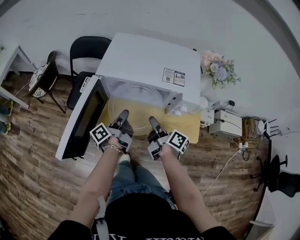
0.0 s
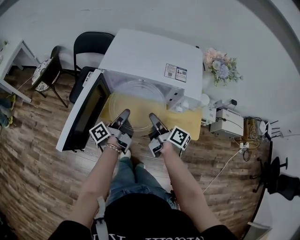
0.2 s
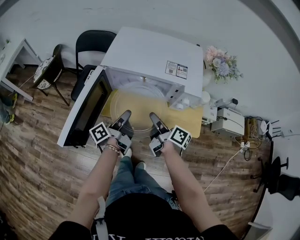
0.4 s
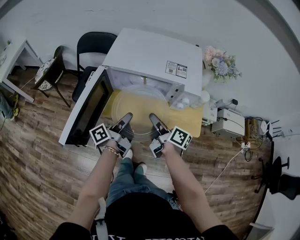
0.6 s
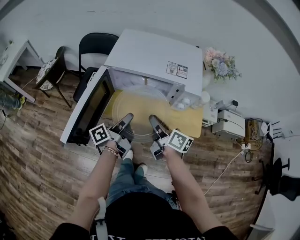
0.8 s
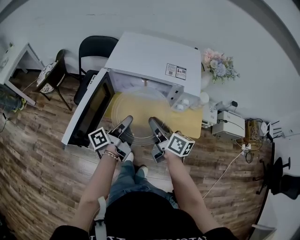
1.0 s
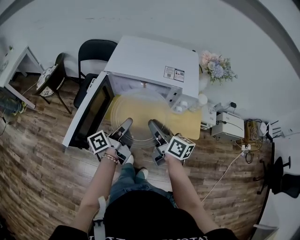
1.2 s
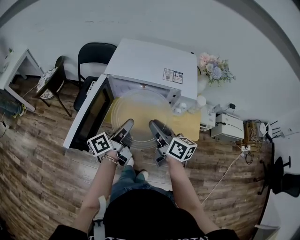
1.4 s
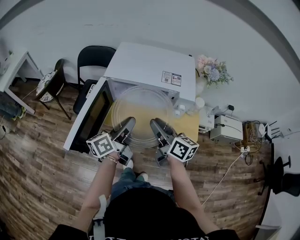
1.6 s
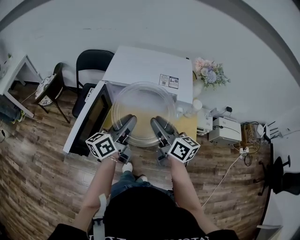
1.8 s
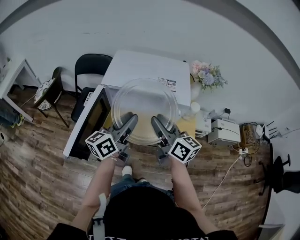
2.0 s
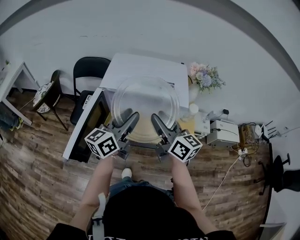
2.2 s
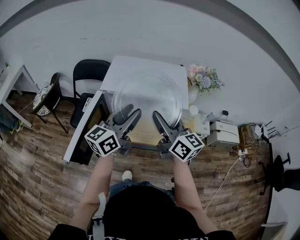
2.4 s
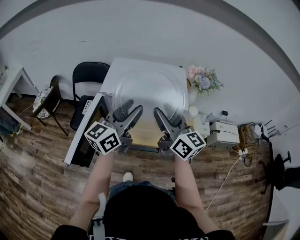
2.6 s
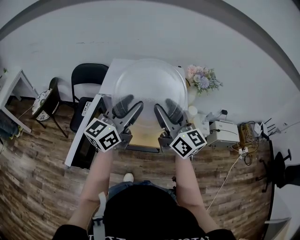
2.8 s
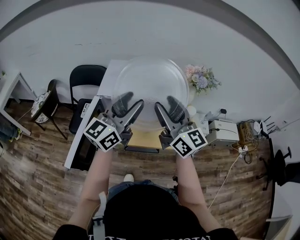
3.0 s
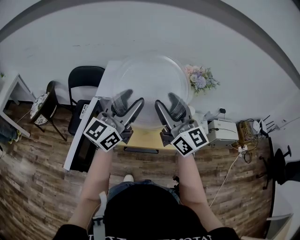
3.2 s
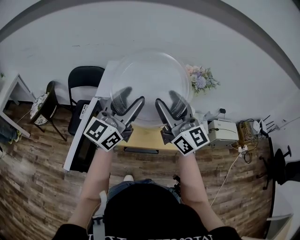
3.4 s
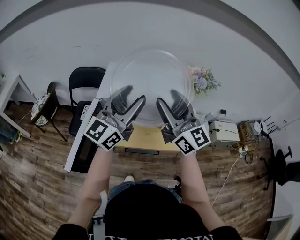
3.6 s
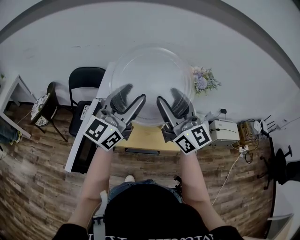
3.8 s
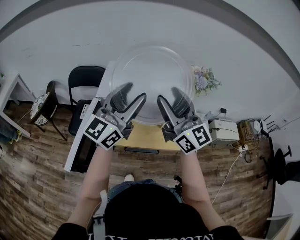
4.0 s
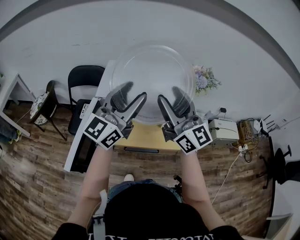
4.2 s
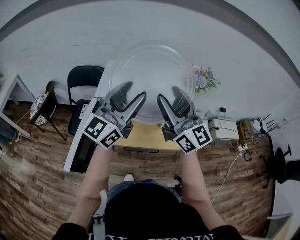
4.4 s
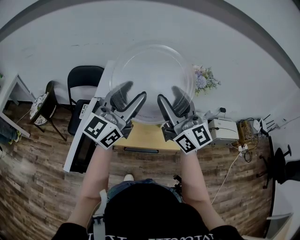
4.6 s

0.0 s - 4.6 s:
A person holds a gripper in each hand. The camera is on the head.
0.0 s - 1.6 s: Both grippers travel together upward and backward, about 15 cm. The right gripper swivels some 30 degrees; the left gripper turns by approximately 40 degrees.
1.6 s - 3.0 s: The two grippers go approximately 15 cm upward. The left gripper rotates around the line of its fingers by approximately 40 degrees, clockwise from behind, and opens, while the right gripper changes its angle by some 40 degrees.
3.0 s - 4.6 s: The grippers move only a little.

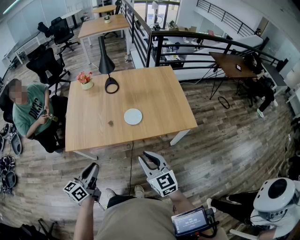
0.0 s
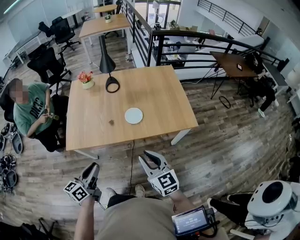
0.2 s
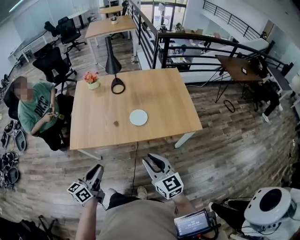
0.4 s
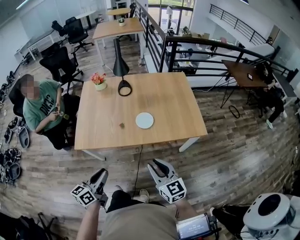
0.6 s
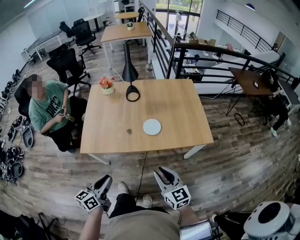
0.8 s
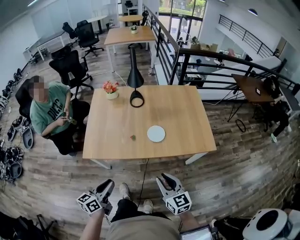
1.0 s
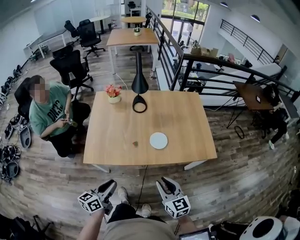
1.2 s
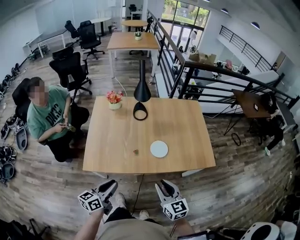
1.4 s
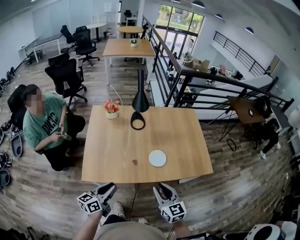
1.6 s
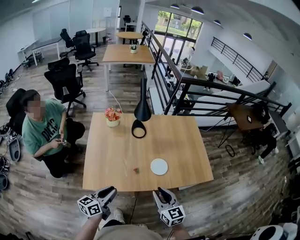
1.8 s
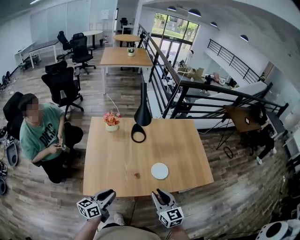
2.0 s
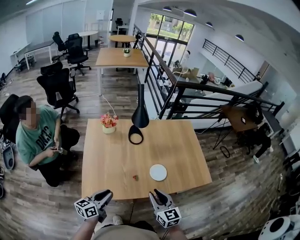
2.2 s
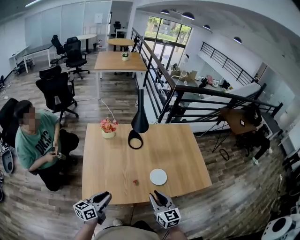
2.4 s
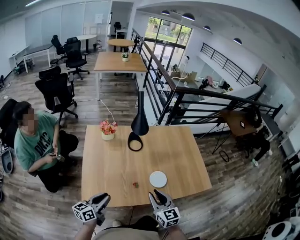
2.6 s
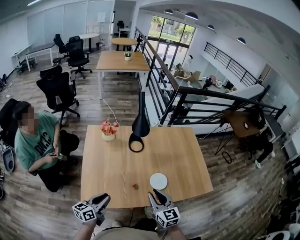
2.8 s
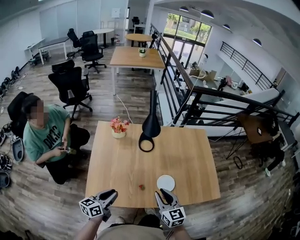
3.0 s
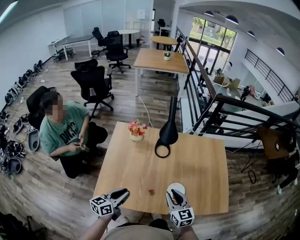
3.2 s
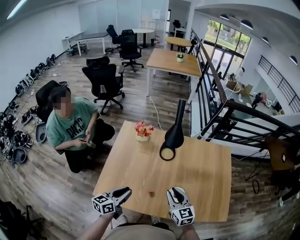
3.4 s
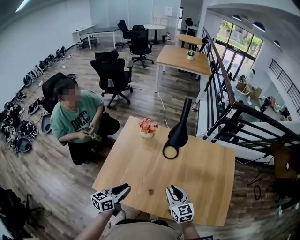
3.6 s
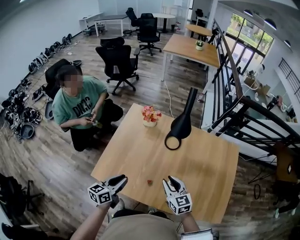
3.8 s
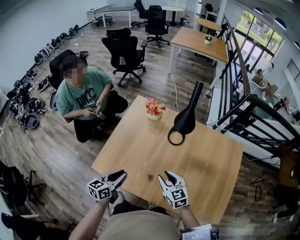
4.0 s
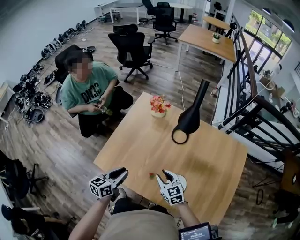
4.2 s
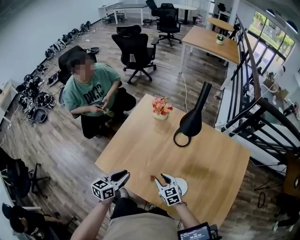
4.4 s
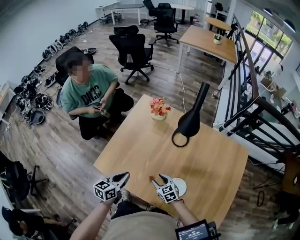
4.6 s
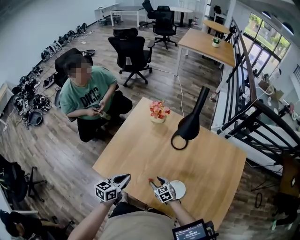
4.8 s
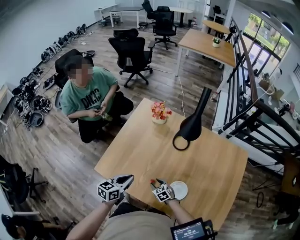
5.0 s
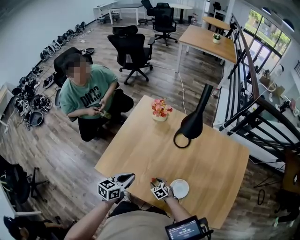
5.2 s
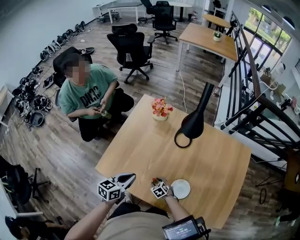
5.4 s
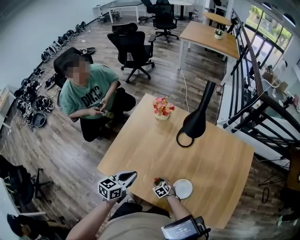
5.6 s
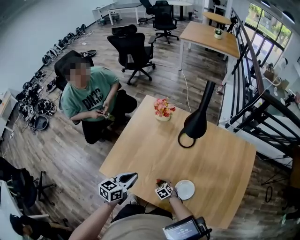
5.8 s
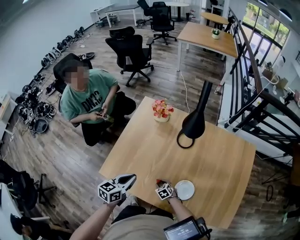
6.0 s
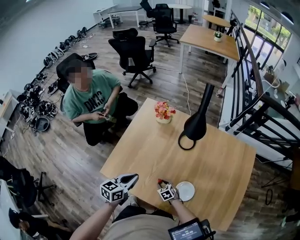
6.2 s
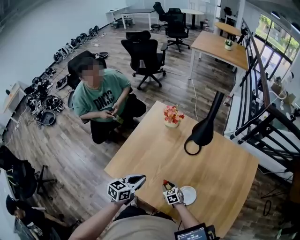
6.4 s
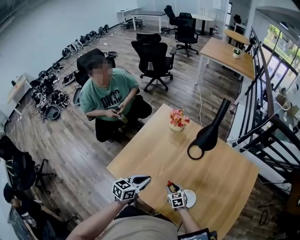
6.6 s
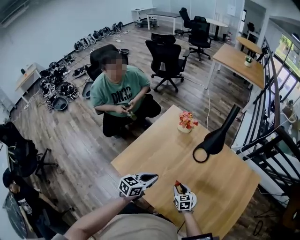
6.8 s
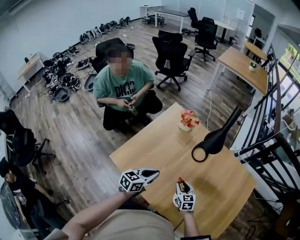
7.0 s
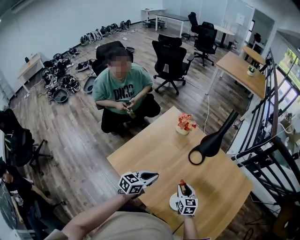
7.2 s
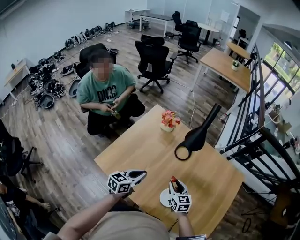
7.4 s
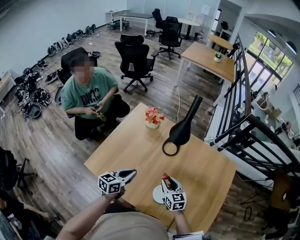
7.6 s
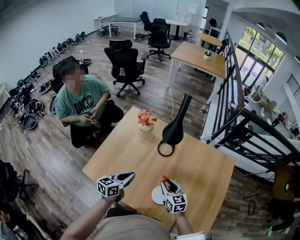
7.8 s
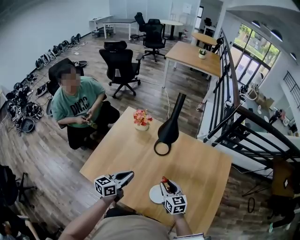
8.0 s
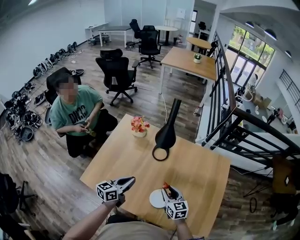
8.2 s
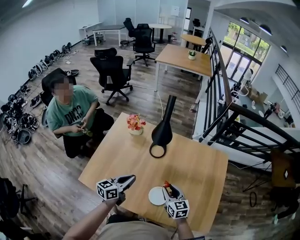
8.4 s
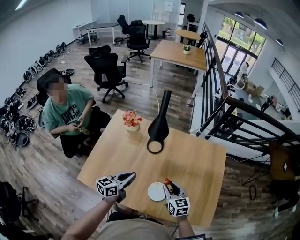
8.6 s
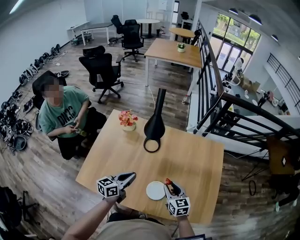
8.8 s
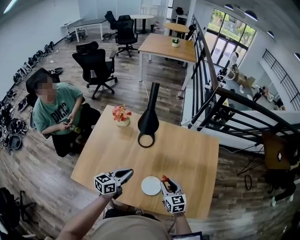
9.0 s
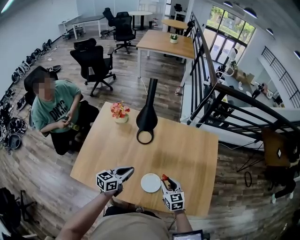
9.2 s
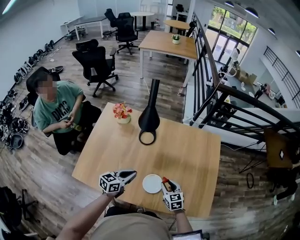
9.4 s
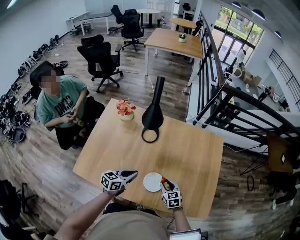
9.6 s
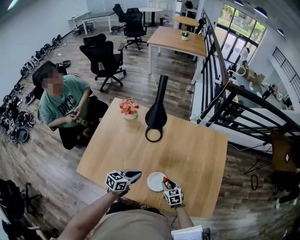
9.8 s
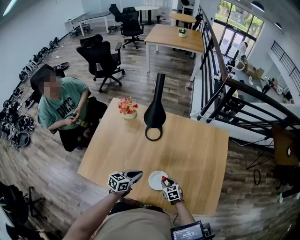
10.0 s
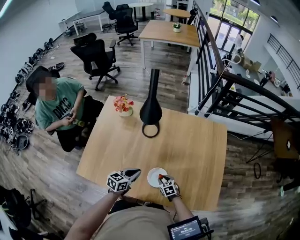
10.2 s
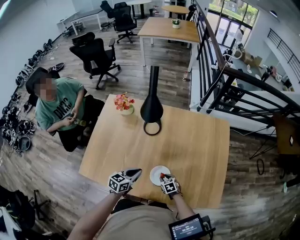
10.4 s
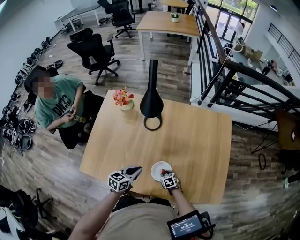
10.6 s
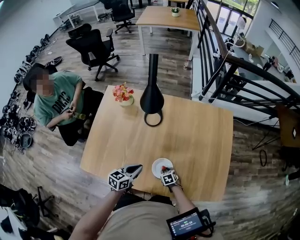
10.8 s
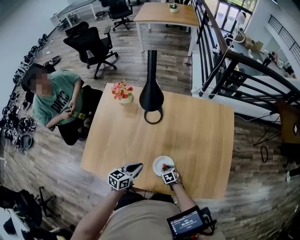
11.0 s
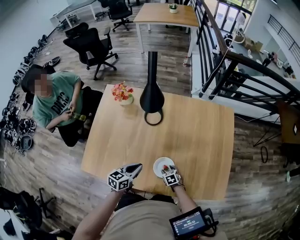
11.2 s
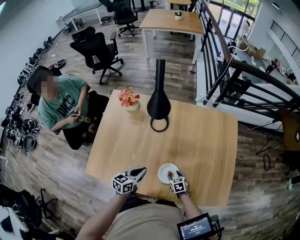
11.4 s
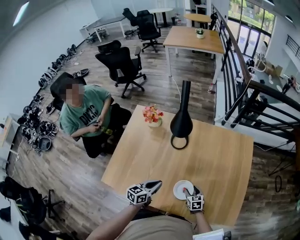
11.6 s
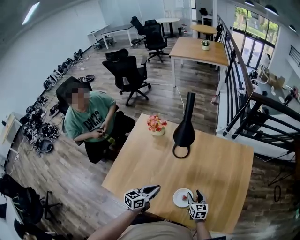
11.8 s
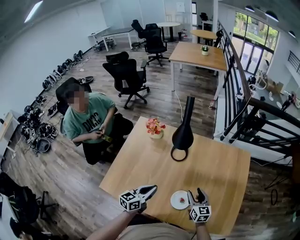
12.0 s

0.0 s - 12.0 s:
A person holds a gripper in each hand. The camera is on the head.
0.0 s - 1.6 s: Both grippers move forward and to the left, approximately 15 cm.
1.6 s - 3.0 s: Both grippers travel together forward and to the left, about 15 cm.
3.0 s - 4.4 s: The left gripper ends up about 5 cm from where it was, and changes its angle by roughly 30 degrees, while the right gripper shifts about 20 cm downward, and turns by roughly 50 degrees.
4.4 s - 6.0 s: The right gripper goes roughly 20 cm downward, and changes its angle by approximately 20 degrees.
6.0 s - 7.6 s: The left gripper travels to the right by some 10 cm. The right gripper travels upward and to the right by some 30 cm, and angles its fingers upward, by about 30 degrees.
7.6 s - 9.0 s: Both grippers travel together to the right, some 10 cm.
9.0 s - 10.4 s: The left gripper is displaced downward by some 10 cm. The right gripper travels downward by roughly 25 cm, and swivels roughly 30 degrees.
10.4 s - 12.0 s: The left gripper shifts about 10 cm upward and to the left. The right gripper moves upward, roughly 25 cm, tips its fingers upward by approximately 40 degrees, and opens its fingers.

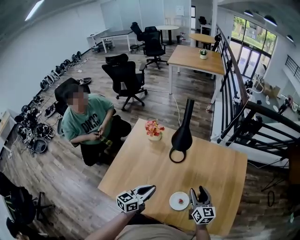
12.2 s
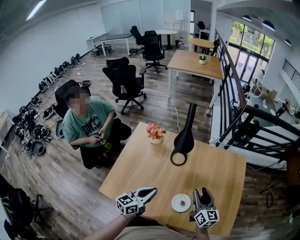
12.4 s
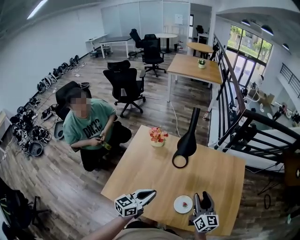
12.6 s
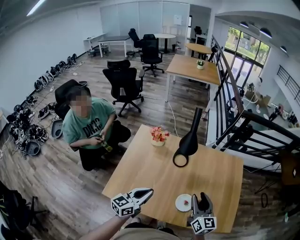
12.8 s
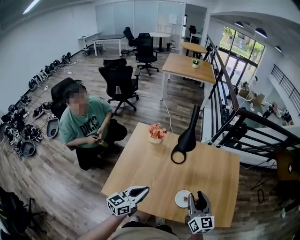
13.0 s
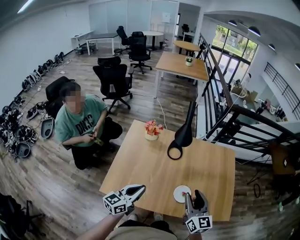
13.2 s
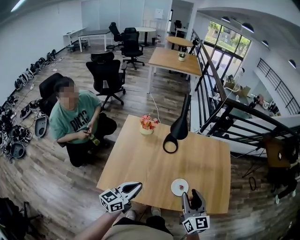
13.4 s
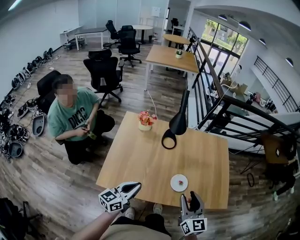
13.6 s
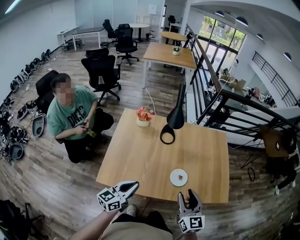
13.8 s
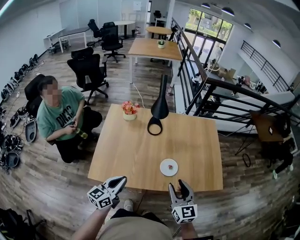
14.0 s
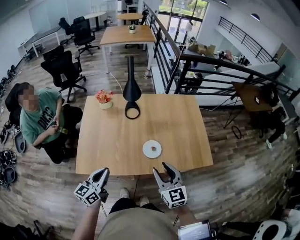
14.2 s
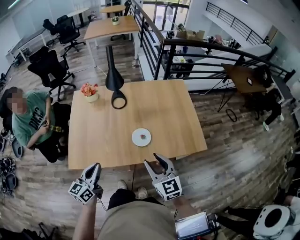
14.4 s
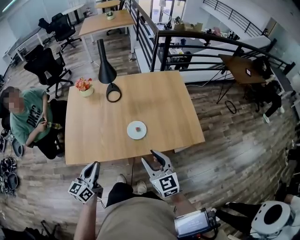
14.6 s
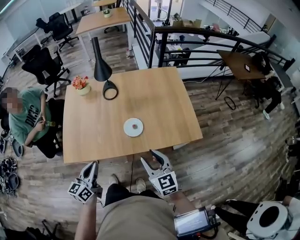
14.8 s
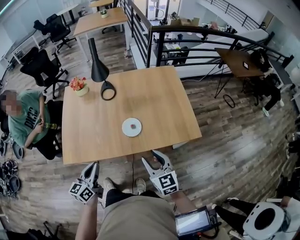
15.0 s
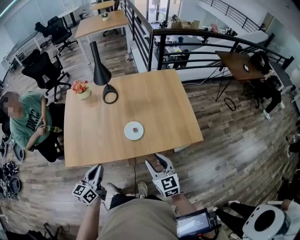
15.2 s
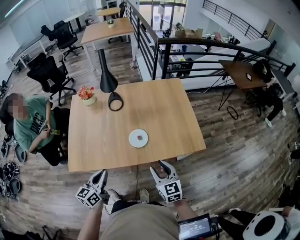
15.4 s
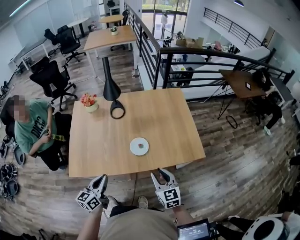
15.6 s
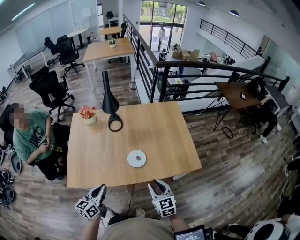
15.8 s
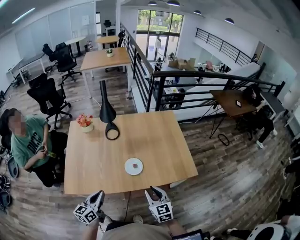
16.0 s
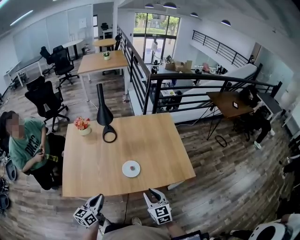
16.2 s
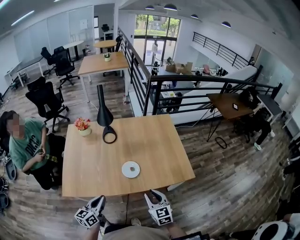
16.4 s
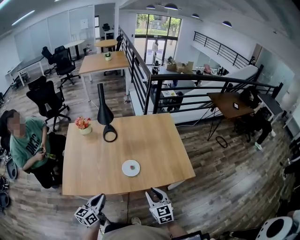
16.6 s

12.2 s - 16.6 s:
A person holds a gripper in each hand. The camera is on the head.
12.2 s - 13.6 s: The right gripper shifts some 30 cm backward, upward and to the left. The left gripper shifts approximately 20 cm backward and to the left.
13.6 s - 15.2 s: The right gripper goes approximately 25 cm to the right, downward and backward. The left gripper travels to the right and backward by approximately 15 cm.
15.2 s - 16.6 s: The grippers make only small movements.

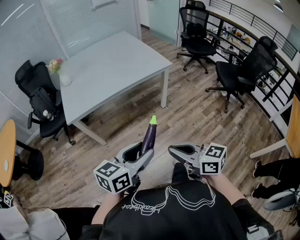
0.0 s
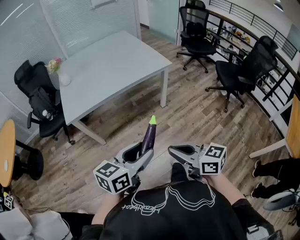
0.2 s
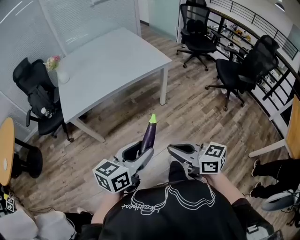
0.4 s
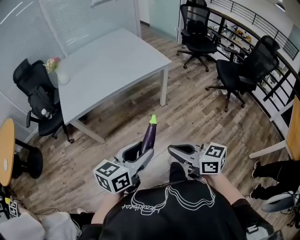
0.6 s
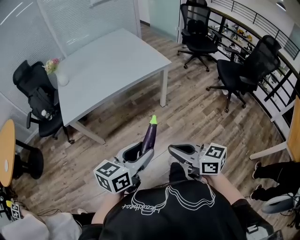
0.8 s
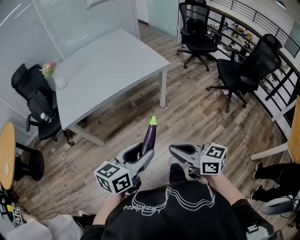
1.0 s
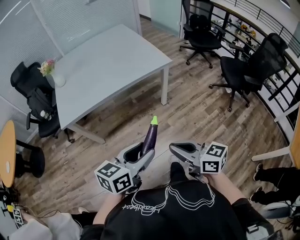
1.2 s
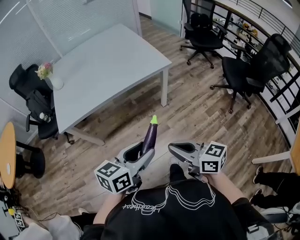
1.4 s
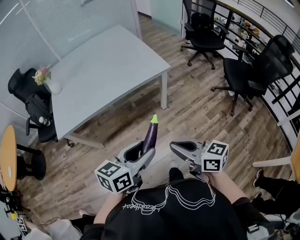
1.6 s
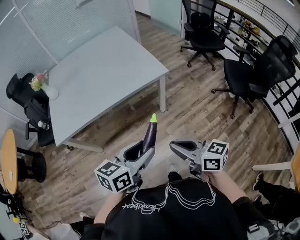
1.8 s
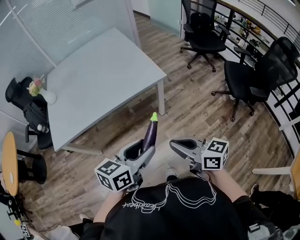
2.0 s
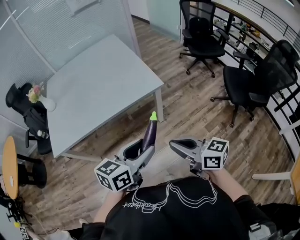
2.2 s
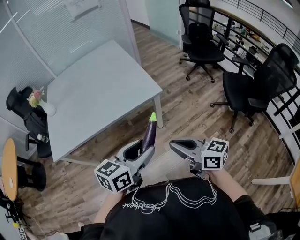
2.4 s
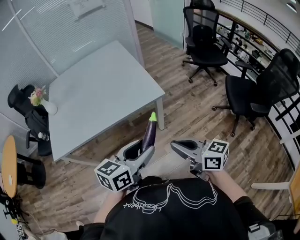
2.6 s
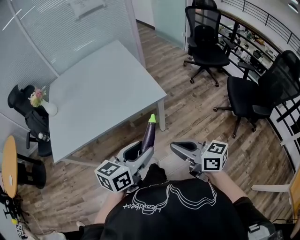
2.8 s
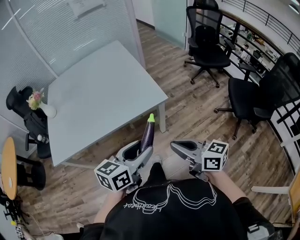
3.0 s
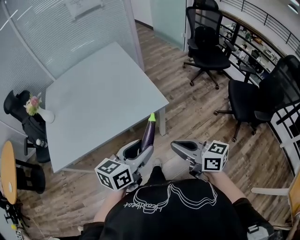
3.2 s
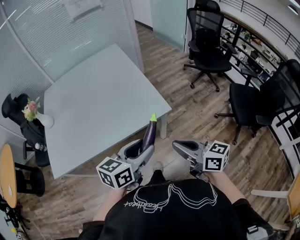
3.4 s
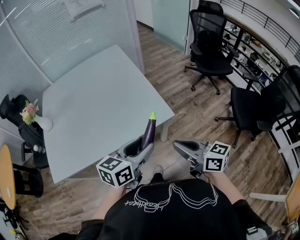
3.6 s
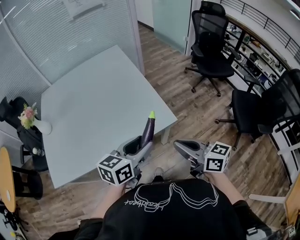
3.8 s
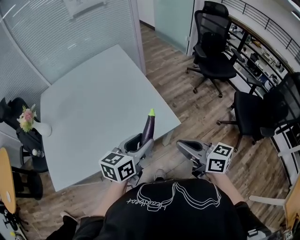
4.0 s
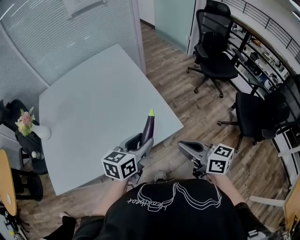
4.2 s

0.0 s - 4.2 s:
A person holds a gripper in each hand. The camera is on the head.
0.0 s - 1.4 s: Both grippers travel together forward and to the right, approximately 15 cm.
1.4 s - 2.8 s: The two grippers go some 30 cm forward and to the right.
2.8 s - 4.2 s: Both grippers move forward, about 30 cm.
